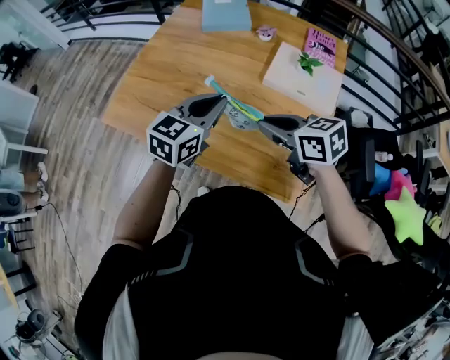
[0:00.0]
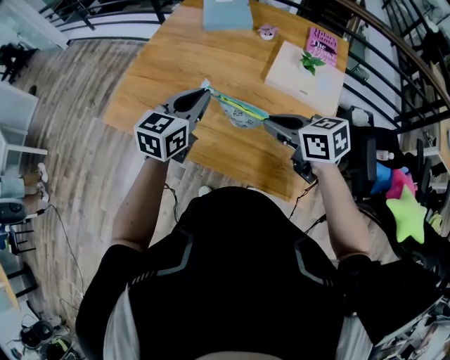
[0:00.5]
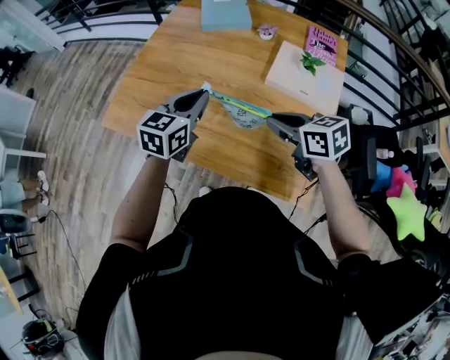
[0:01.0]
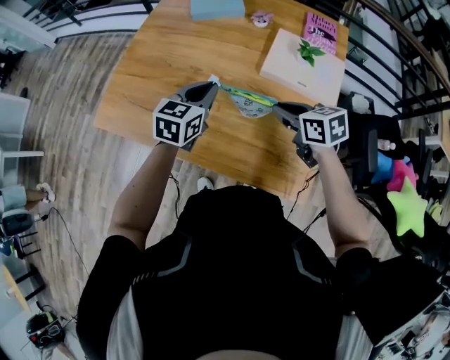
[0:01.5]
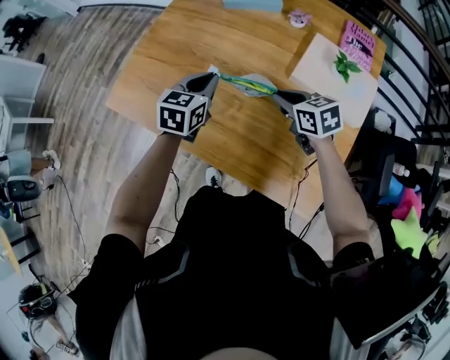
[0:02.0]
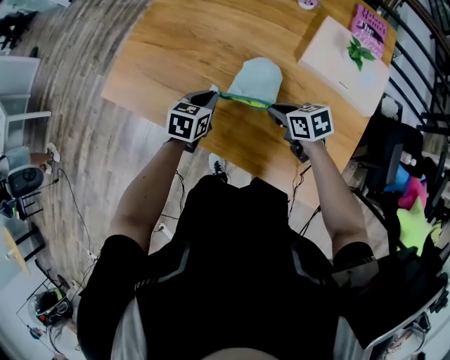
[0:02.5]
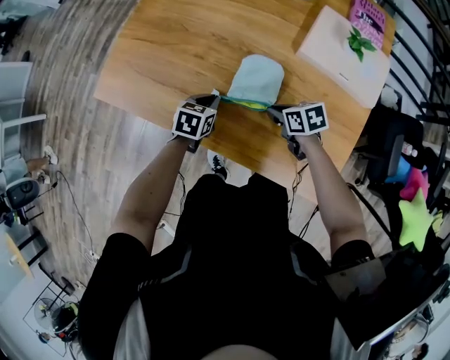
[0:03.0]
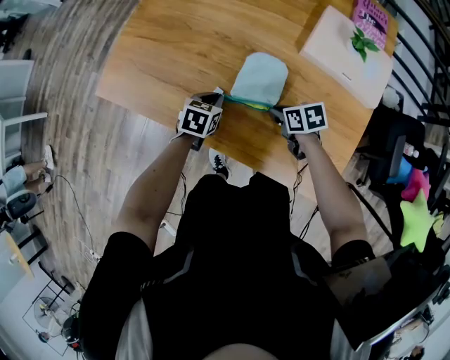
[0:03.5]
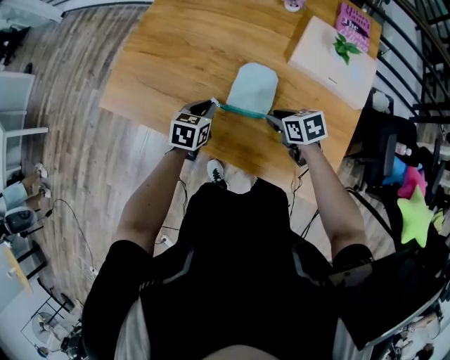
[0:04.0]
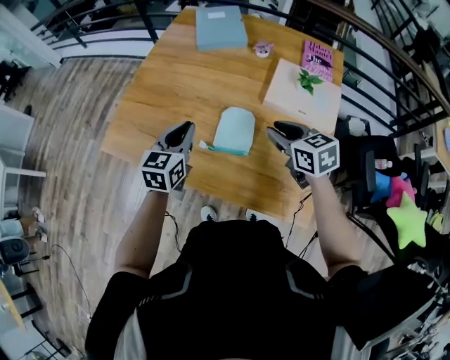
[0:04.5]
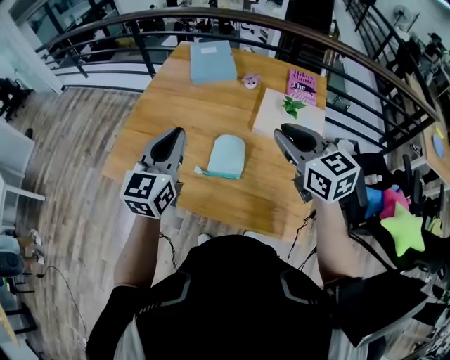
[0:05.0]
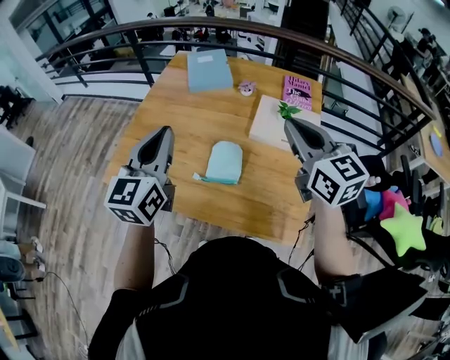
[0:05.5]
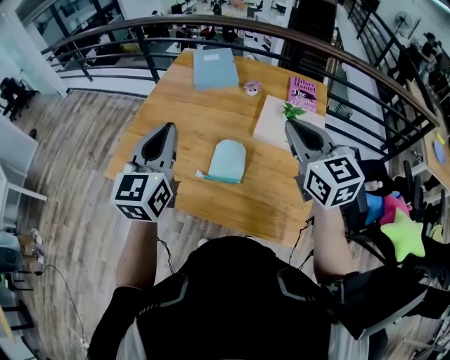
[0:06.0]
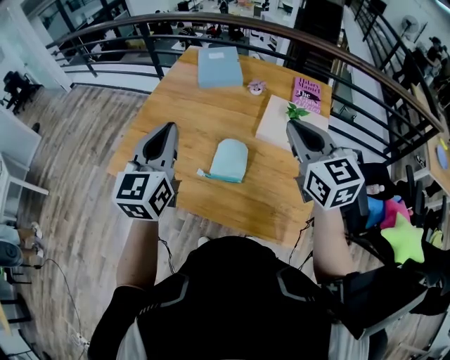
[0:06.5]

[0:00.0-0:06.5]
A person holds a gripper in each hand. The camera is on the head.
0.0 to 2.0 s: The right gripper shifts roughly 20 cm forward and downward; the left gripper goes approximately 20 cm forward, downward and to the left, and turns by some 20 degrees.
2.0 to 4.5 s: The left gripper is displaced backward by about 5 cm, and reaches some 20 cm downward, then returns; the right gripper heads upward and backward, covering approximately 10 cm.
4.5 to 6.5 s: The grippers both shift upward by some 20 cm. The left gripper turns by roughly 20 degrees. Meanwhile the right gripper changes its angle by some 30 degrees, and closes up.

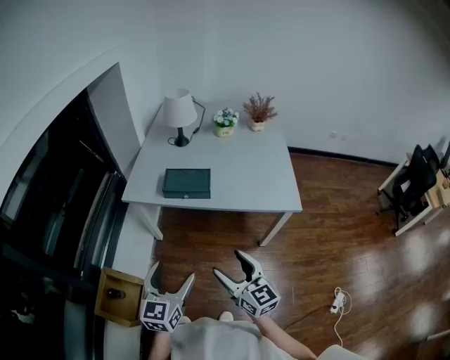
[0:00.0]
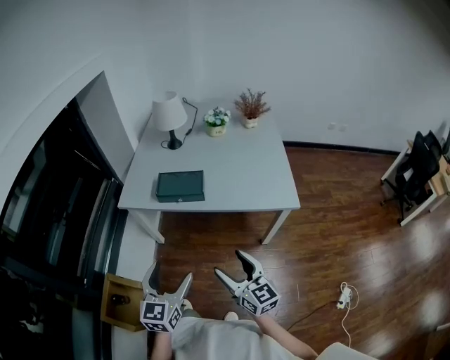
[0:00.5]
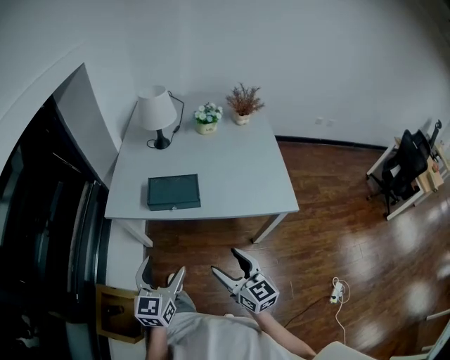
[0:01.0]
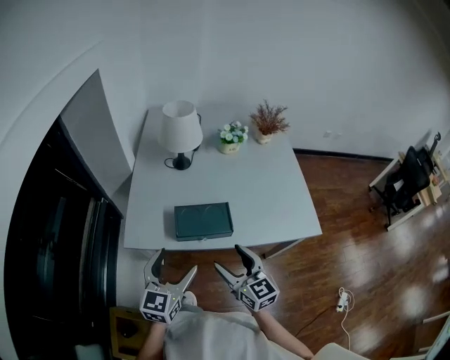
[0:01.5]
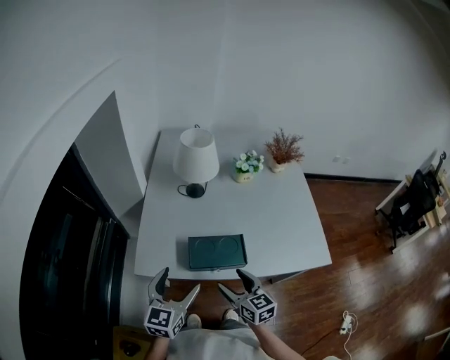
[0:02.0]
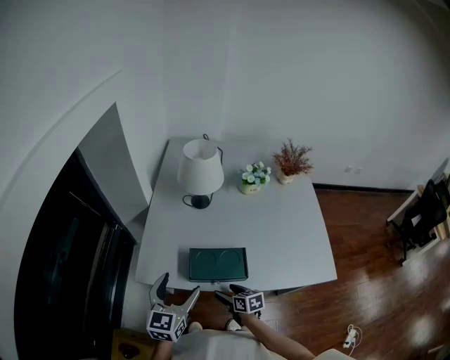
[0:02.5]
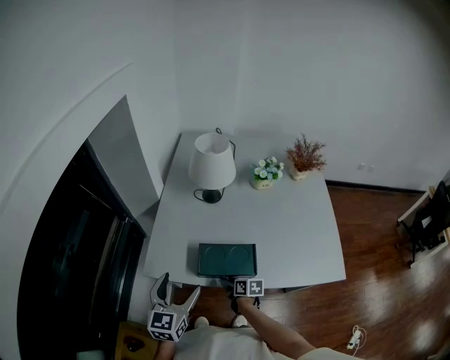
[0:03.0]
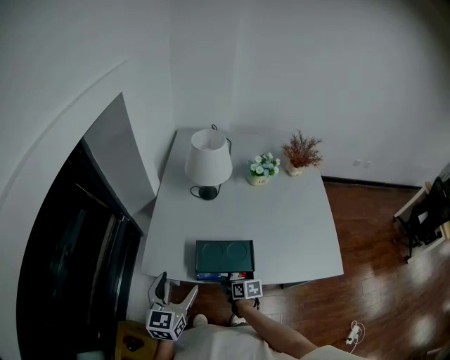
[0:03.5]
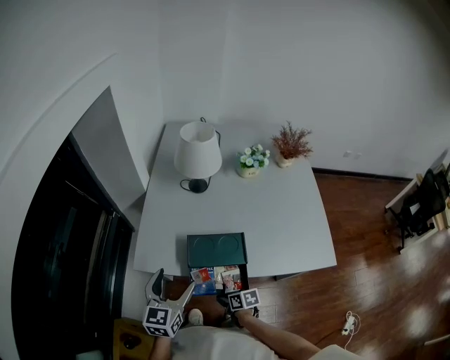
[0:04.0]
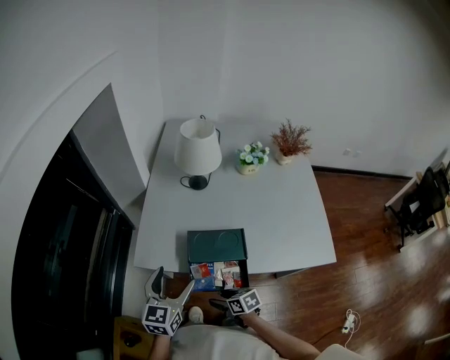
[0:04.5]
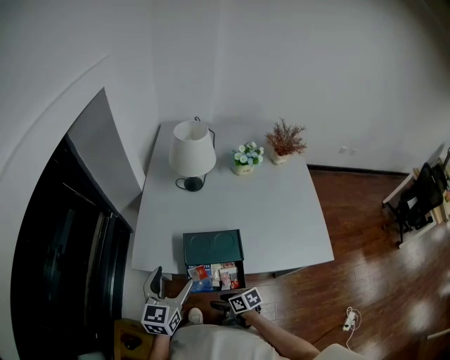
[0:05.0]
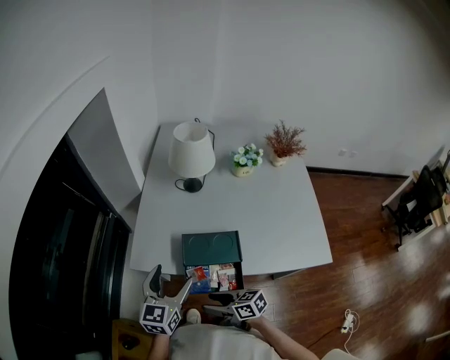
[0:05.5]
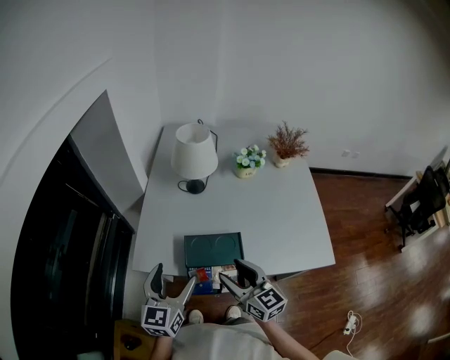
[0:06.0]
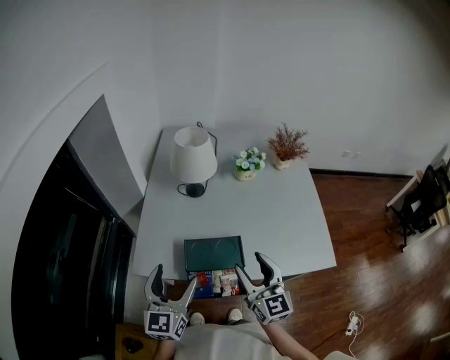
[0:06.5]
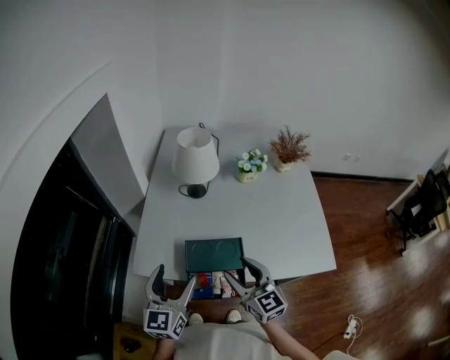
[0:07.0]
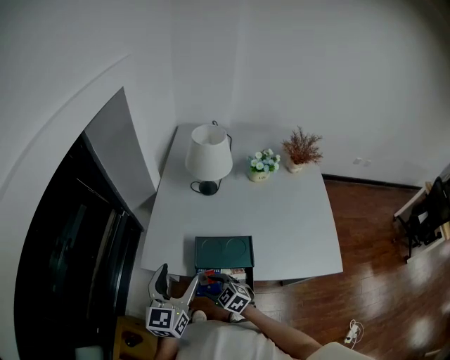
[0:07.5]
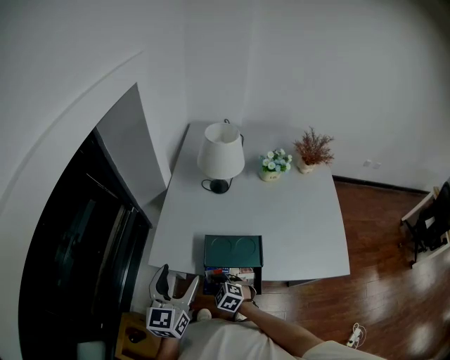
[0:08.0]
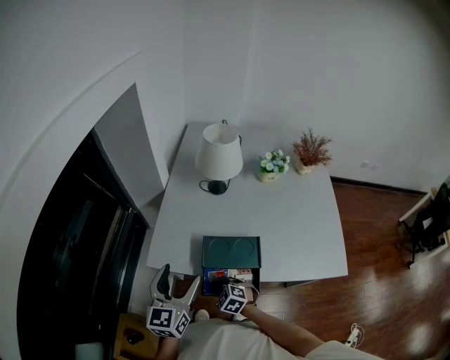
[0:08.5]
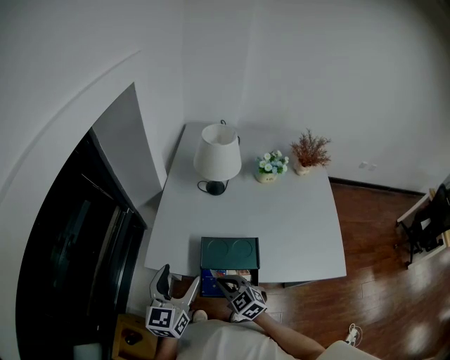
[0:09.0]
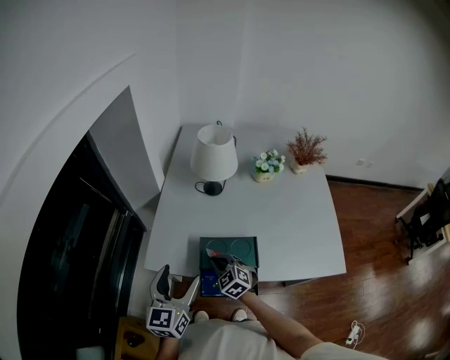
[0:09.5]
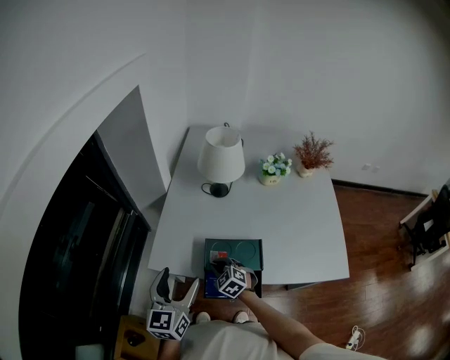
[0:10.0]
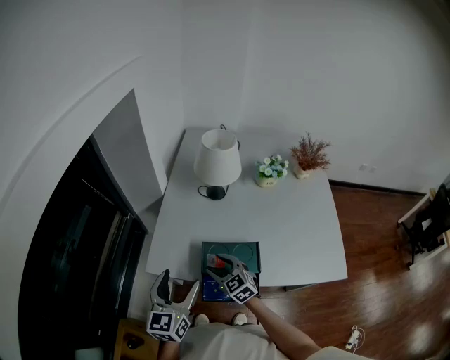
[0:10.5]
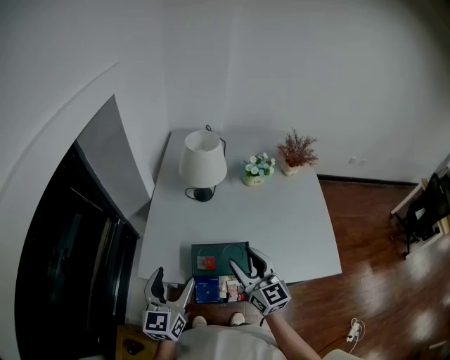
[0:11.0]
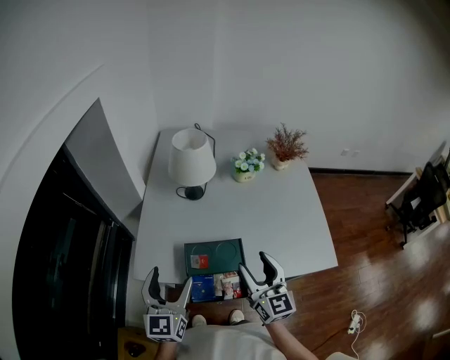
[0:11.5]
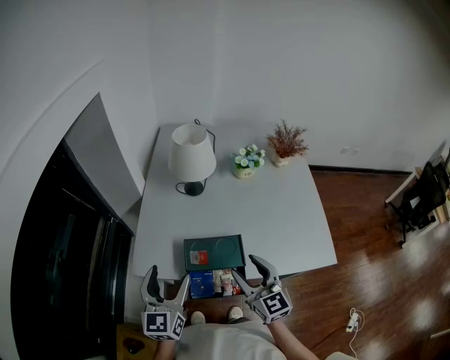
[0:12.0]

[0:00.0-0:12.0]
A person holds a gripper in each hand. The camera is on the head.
0.0 to 2.0 s: Both grippers move forward, approximately 30 cm.
2.0 to 4.0 s: The right gripper travels downward by approximately 20 cm, turns by roughly 50 degrees, and closes.
4.0 to 6.0 s: The right gripper moves upward, about 30 cm, tips its fingers upward by roughly 40 degrees, and opens its fingers. Meanwhile the left gripper shifts about 5 cm upward.
6.0 to 8.0 s: The right gripper travels downward and to the left by some 30 cm, and points its fingers about 50 degrees further downward.
8.0 to 10.0 s: The right gripper is displaced forward and upward by approximately 10 cm.
10.0 to 12.0 s: The right gripper goes about 25 cm upward and to the right, tilts its fingers roughly 40 degrees upward, and opens its fingers.

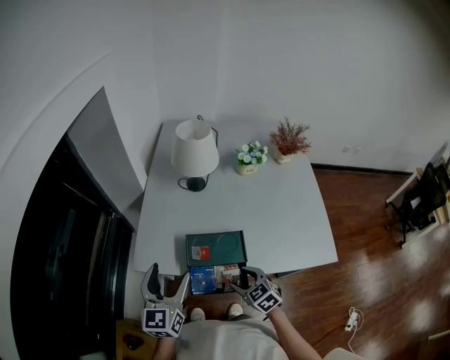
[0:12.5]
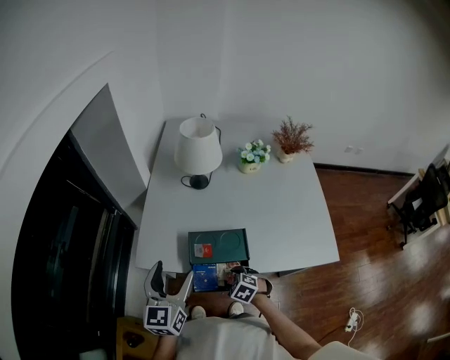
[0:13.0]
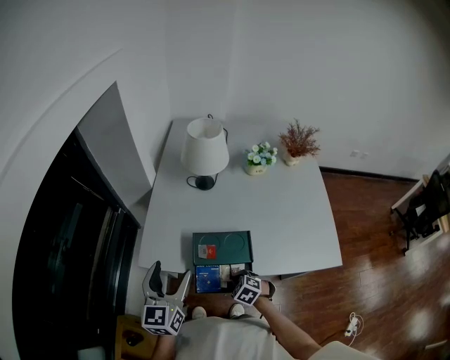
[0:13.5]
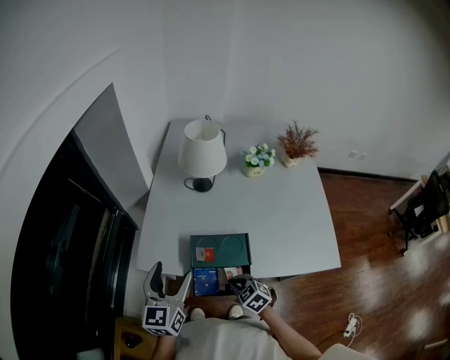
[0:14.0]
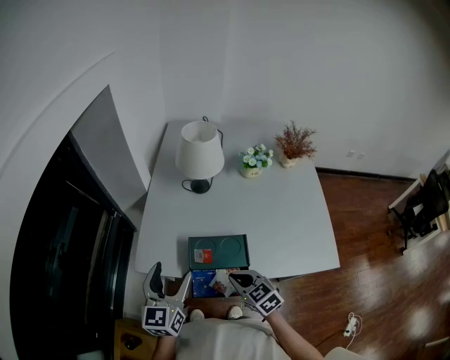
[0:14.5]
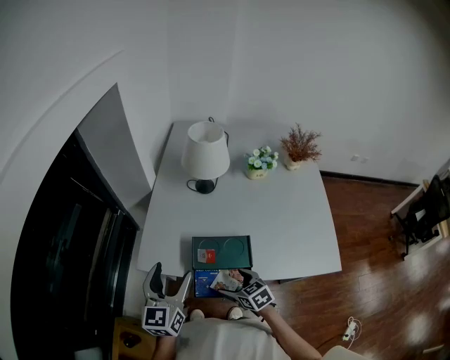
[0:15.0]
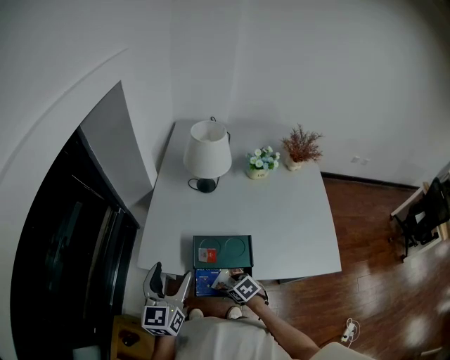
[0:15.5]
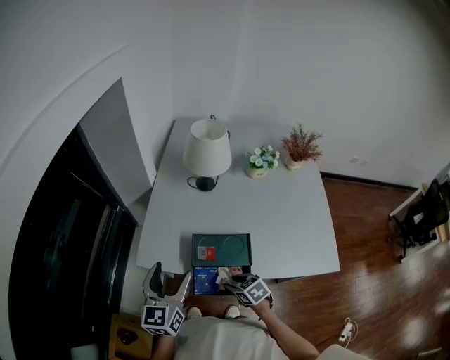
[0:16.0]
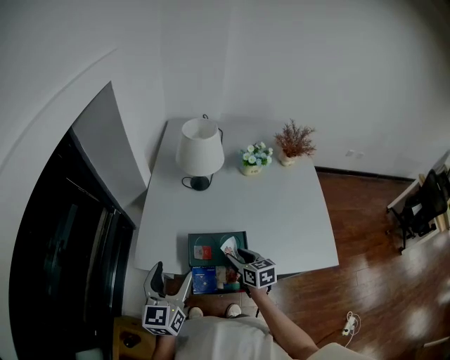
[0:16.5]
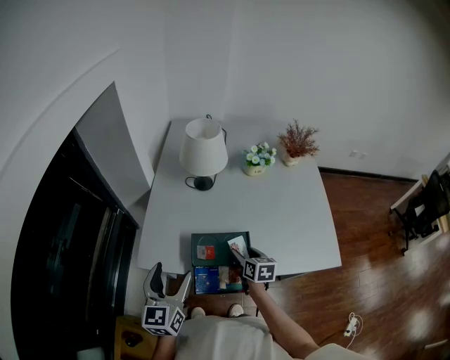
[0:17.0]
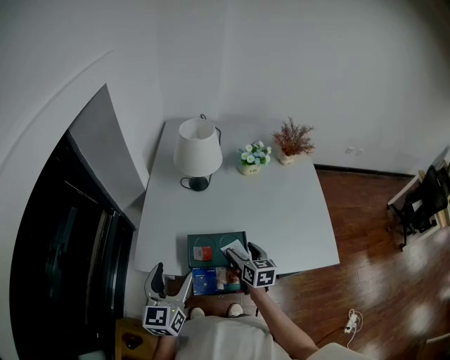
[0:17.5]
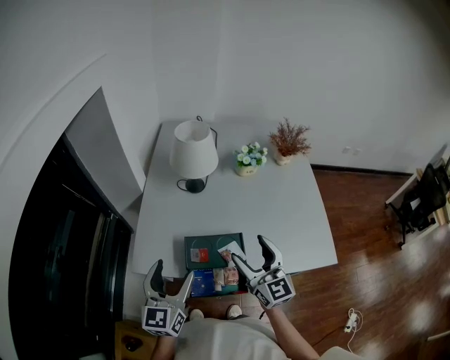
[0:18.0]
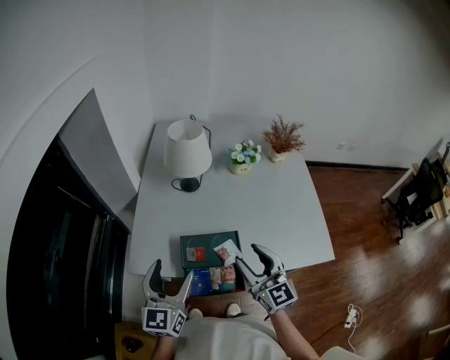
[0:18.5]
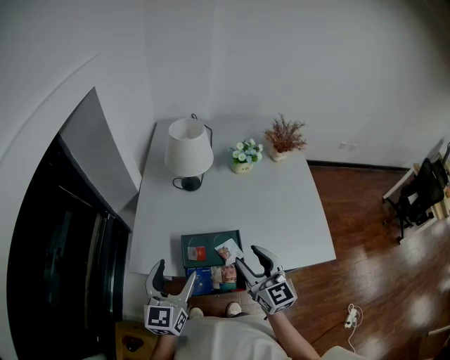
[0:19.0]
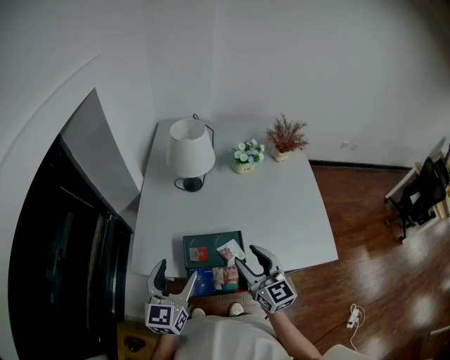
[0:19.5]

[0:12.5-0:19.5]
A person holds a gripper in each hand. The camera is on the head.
12.5 to 14.5 s: The right gripper travels downward and back again, some 10 cm each way, and closes.
14.5 to 16.0 s: The right gripper is displaced downward by about 10 cm, swivels some 20 degrees, and opens.
16.0 to 17.5 s: The right gripper travels forward, upward and to the right by roughly 15 cm, swivels about 40 degrees, and opens its fingers.
17.5 to 19.5 s: The right gripper goes about 15 cm upward and backward, turns by about 30 degrees, and closes.

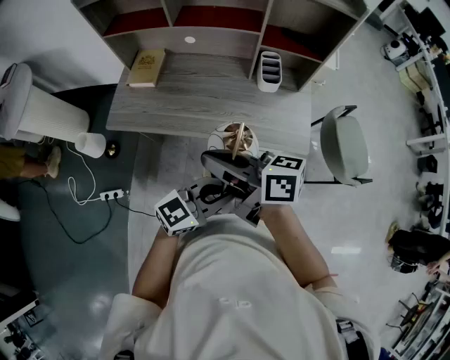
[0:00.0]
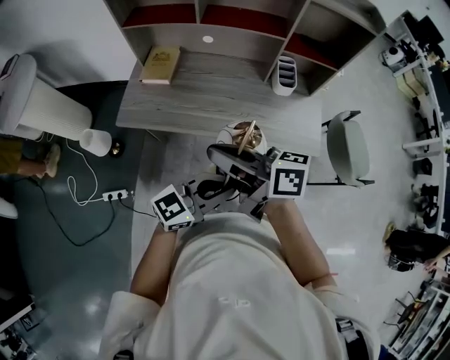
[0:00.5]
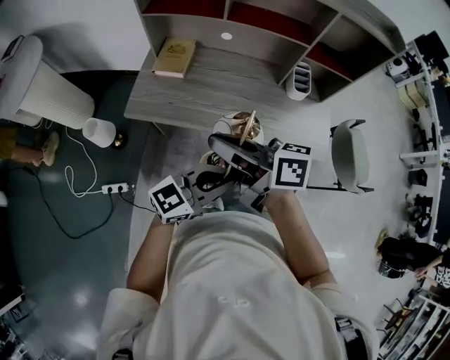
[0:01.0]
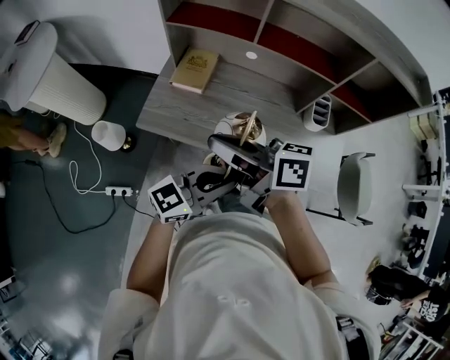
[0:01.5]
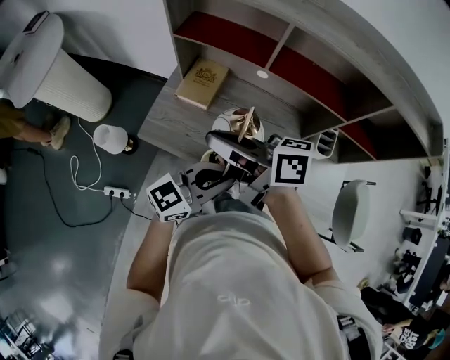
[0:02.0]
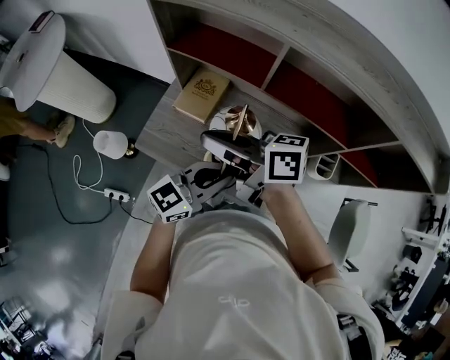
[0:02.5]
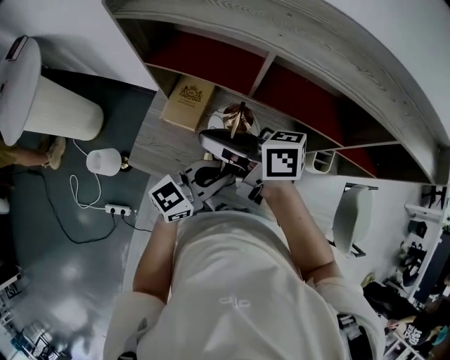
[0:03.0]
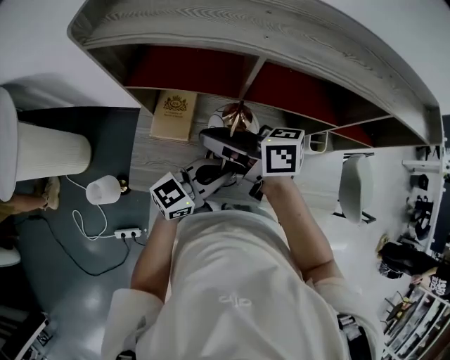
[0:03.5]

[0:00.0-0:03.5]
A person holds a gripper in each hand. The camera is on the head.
0.0 to 2.0 s: The right gripper shifts by some 35 cm. Meanwhile the left gripper moves about 35 cm.
2.0 to 3.5 s: The right gripper shifts by about 15 cm. Meanwhile the left gripper changes place by roughly 15 cm.
